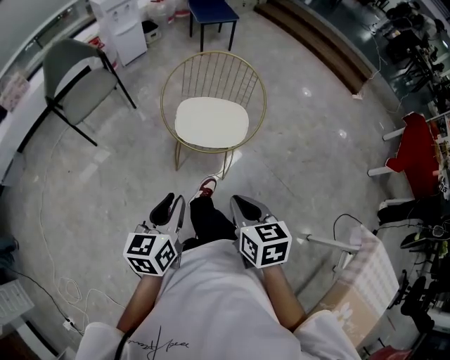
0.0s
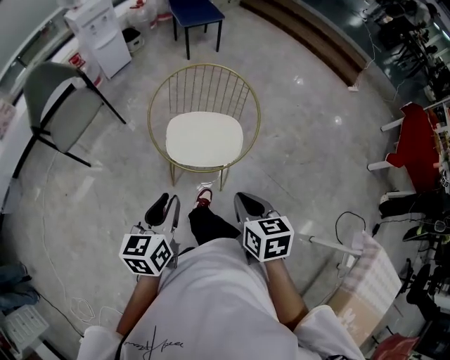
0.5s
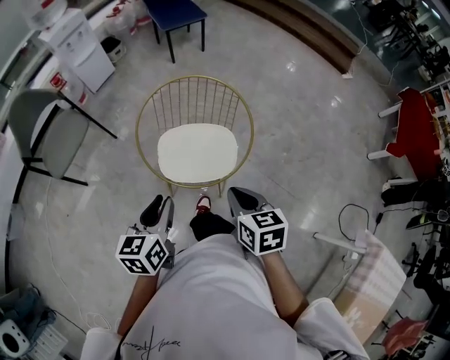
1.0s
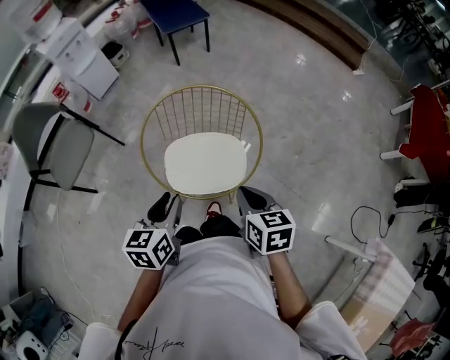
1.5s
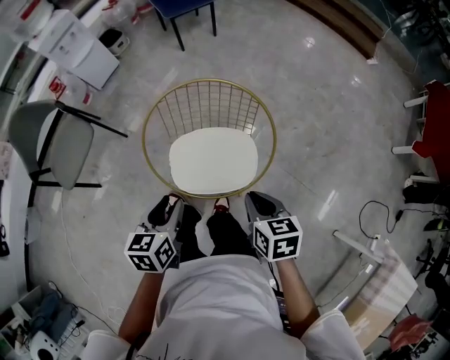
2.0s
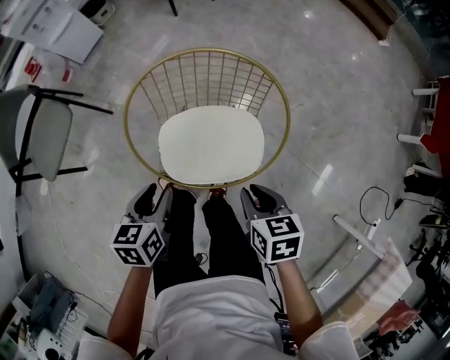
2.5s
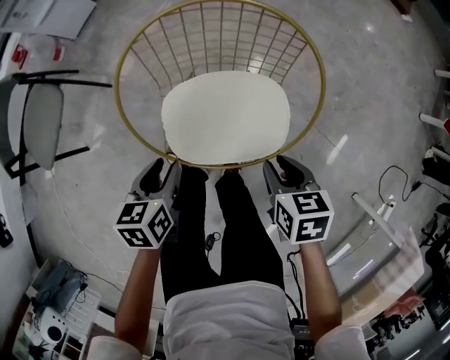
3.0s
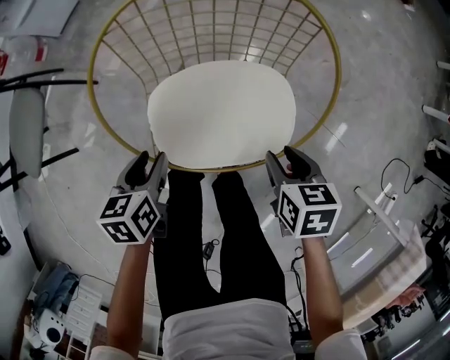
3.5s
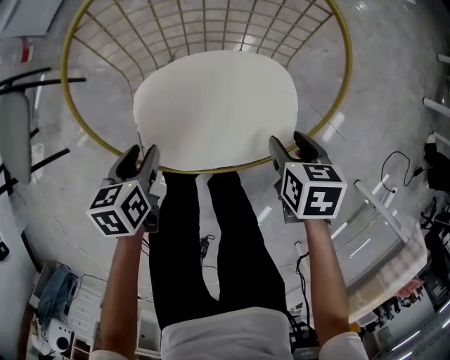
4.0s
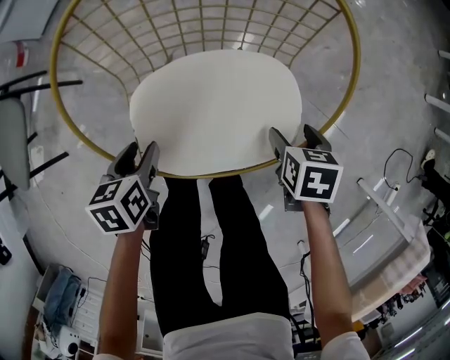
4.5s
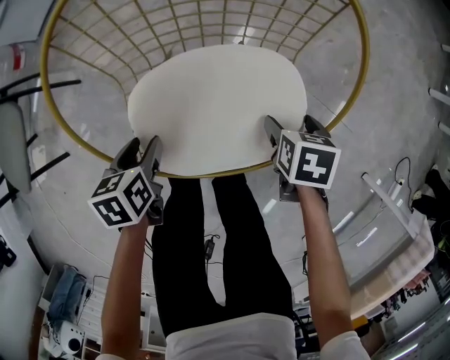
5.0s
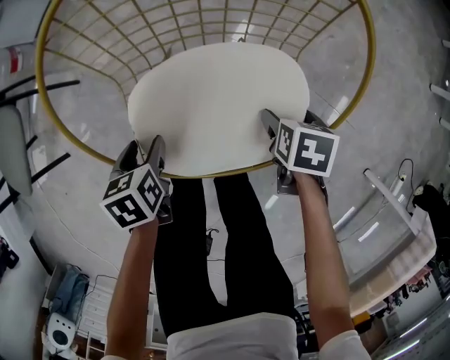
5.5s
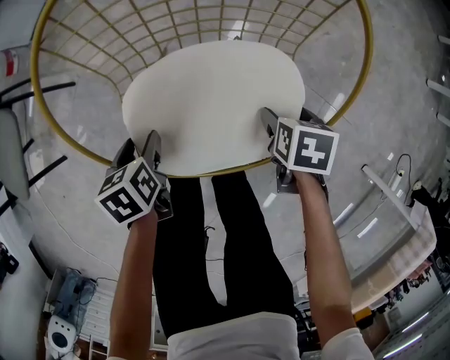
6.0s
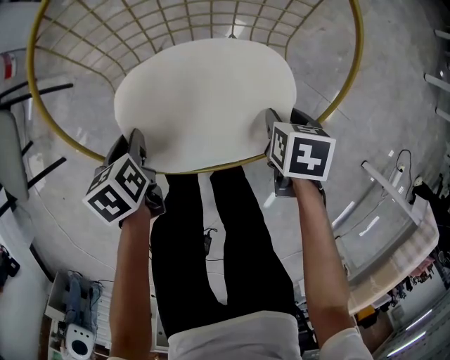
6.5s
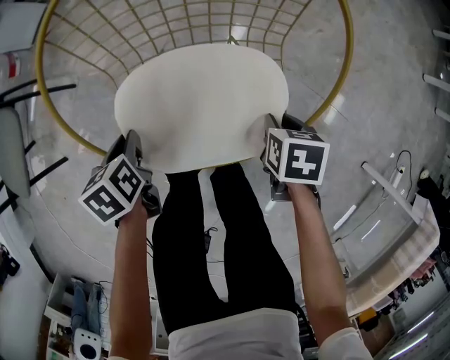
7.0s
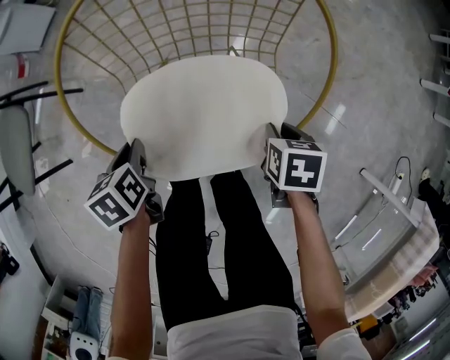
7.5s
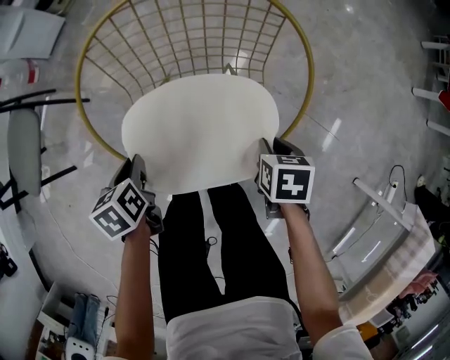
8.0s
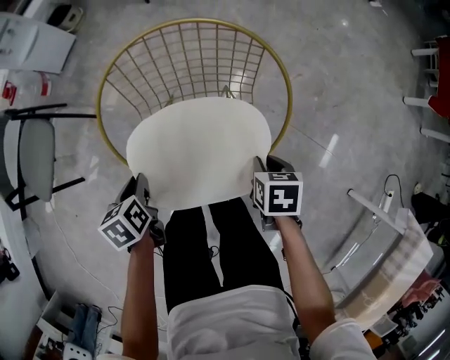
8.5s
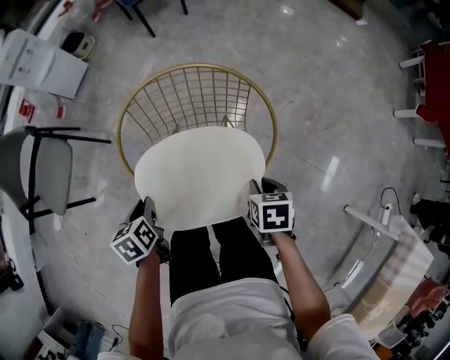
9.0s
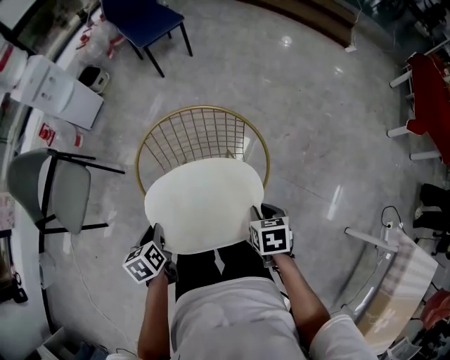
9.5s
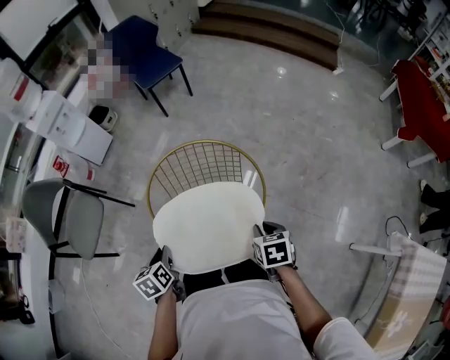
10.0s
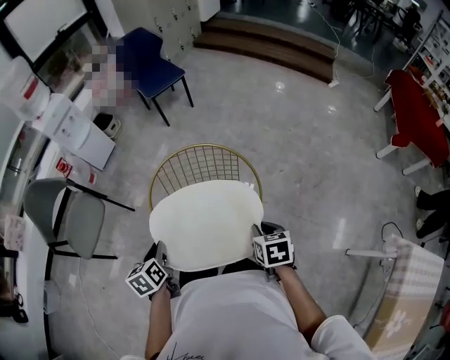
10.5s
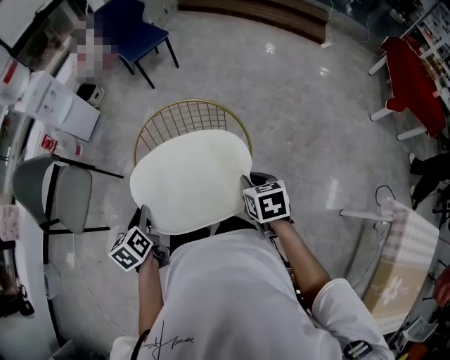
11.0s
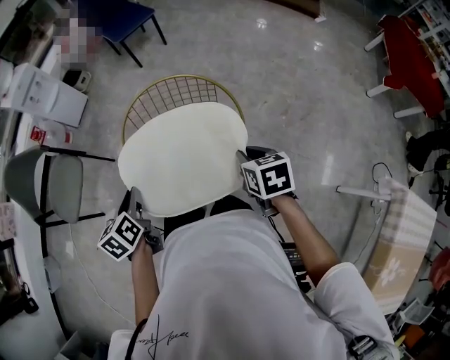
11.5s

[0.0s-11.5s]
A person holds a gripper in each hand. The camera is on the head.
0.0s to 2.0s: The grippers both shift forward by about 35 cm.
2.0s to 4.0s: The two grippers go approximately 30 cm downward. The right gripper turns by some 20 degrees, and opens up.
4.0s to 6.0s: Both grippers move downward, some 5 cm.
6.0s to 7.5s: The grippers both shift upward by some 5 cm. The left gripper closes its fingers. The right gripper closes up.
7.5s to 9.5s: The grippers both shift upward by about 25 cm.
9.5s to 11.5s: Both grippers move upward, some 10 cm.

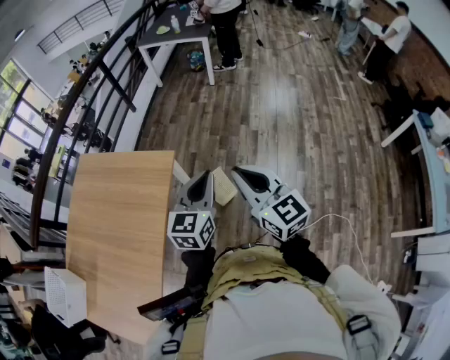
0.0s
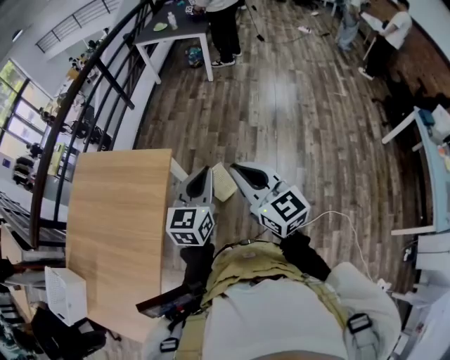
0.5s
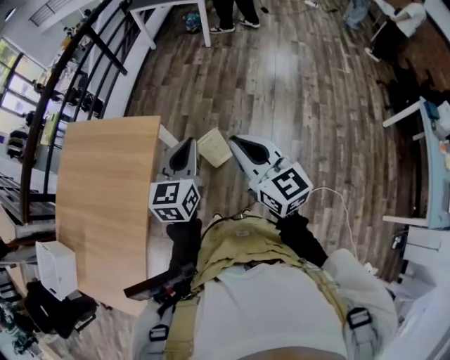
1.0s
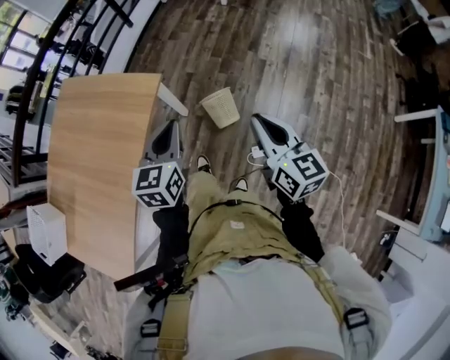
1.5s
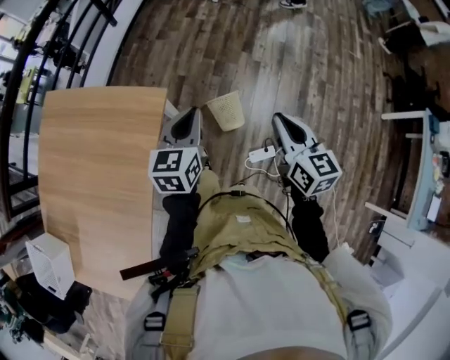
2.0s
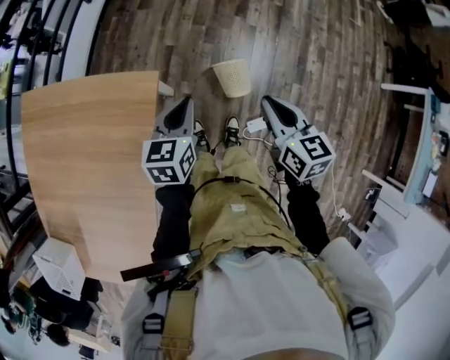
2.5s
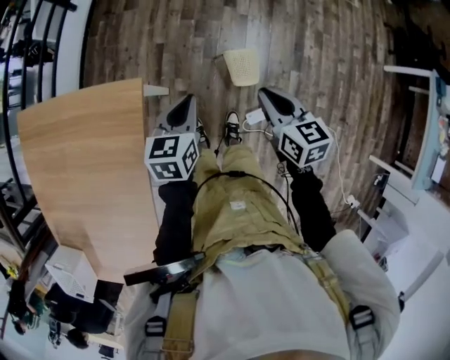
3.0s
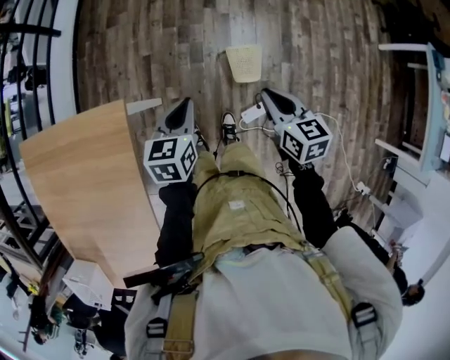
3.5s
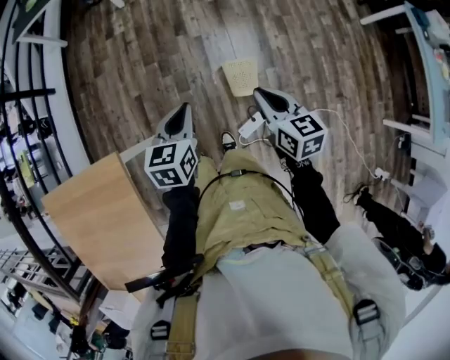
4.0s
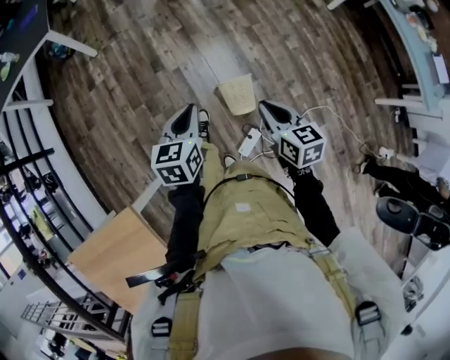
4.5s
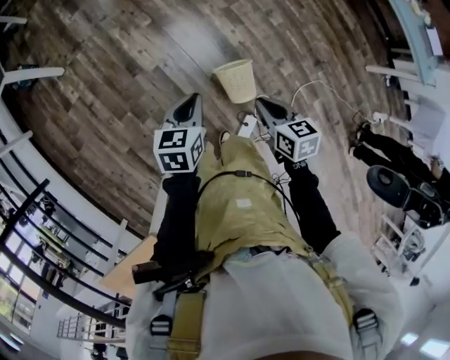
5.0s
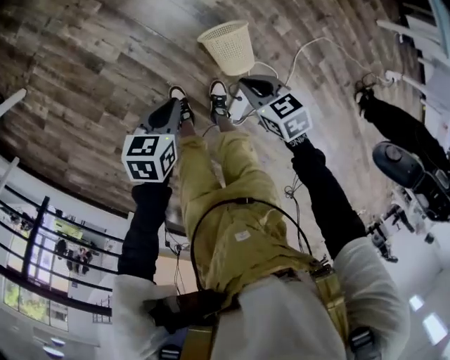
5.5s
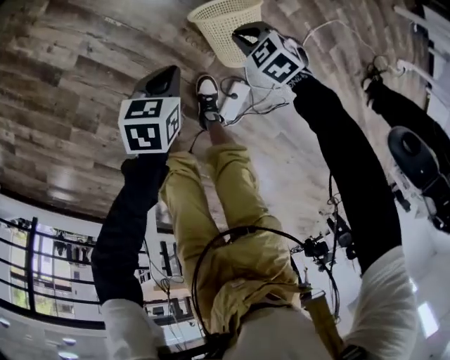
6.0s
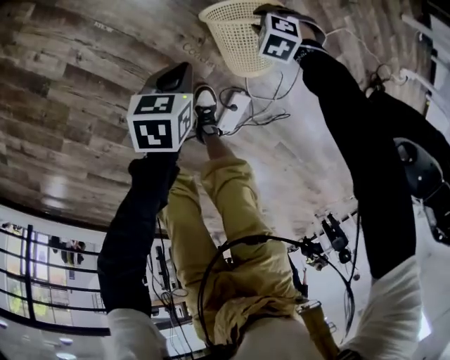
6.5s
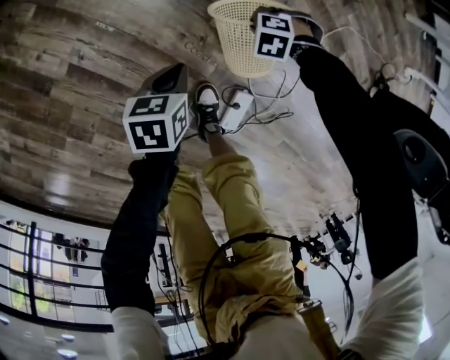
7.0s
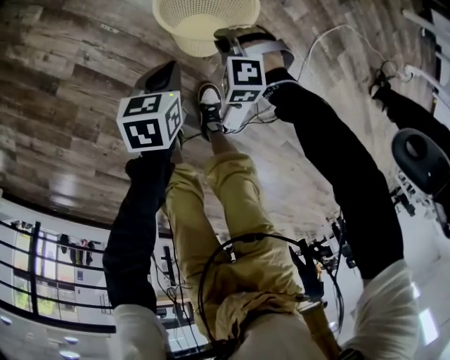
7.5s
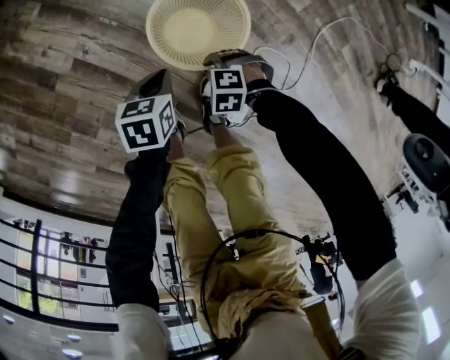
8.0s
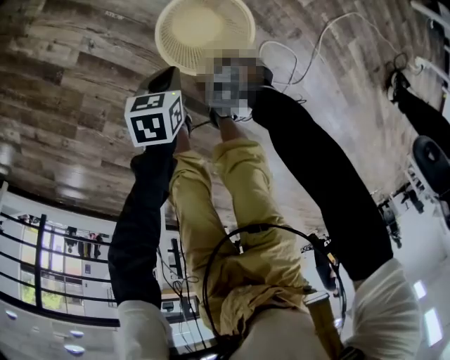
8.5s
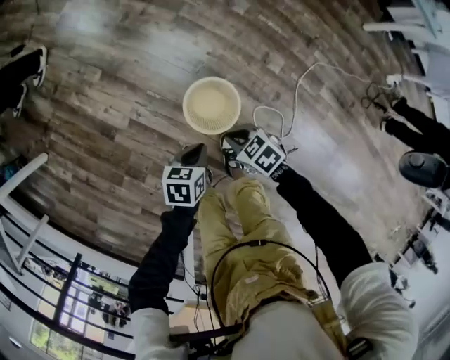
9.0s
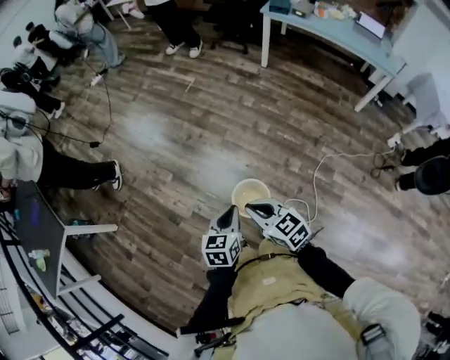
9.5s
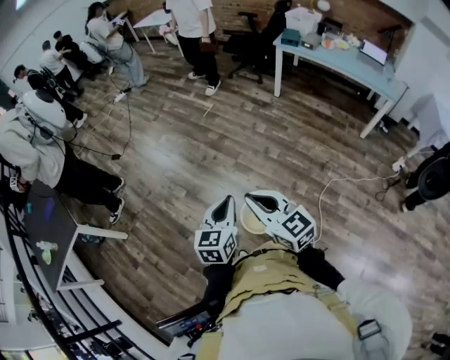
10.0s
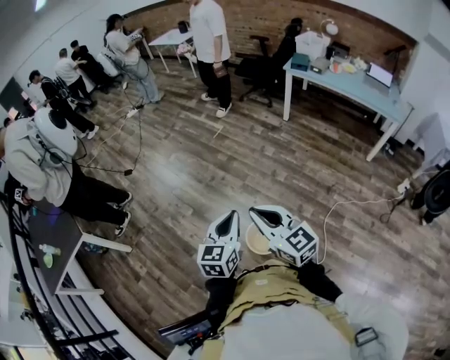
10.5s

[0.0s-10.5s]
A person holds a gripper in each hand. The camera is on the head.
0.0s to 2.0s: The two grippers go roughly 20 cm forward and downward. The right gripper changes its angle by some 20 degrees.
2.0s to 4.0s: The left gripper moves to the right and forward, approximately 30 cm, and swivels some 30 degrees, while the right gripper heads to the right, downward and forward, covering roughly 30 cm, and swivels some 20 degrees.
4.0s to 6.5s: The two grippers travel together, about 40 cm. The grippers both shift downward by approximately 70 cm. The left gripper rotates approximately 60 degrees. The right gripper angles its fingers downward, by approximately 60 degrees, and opens up.
6.5s to 8.5s: The left gripper moves about 10 cm, while the right gripper moves roughly 25 cm, and swivels about 20 degrees.
8.5s to 10.5s: Both grippers move upward, about 80 cm. The right gripper angles its fingers upward, by about 70 degrees; the left gripper points its fingers about 50 degrees further upward.

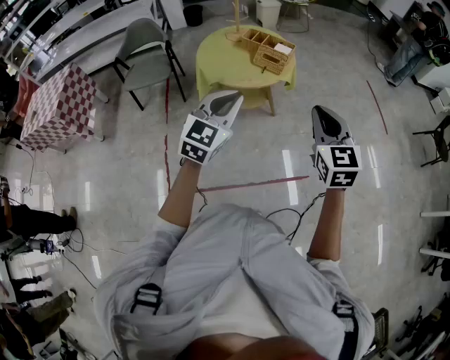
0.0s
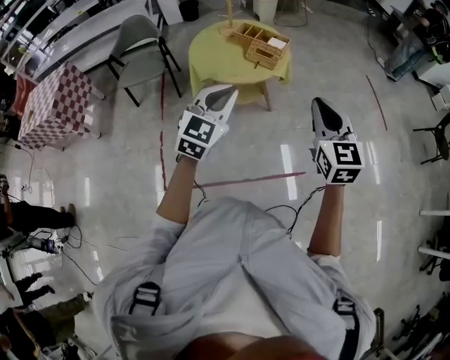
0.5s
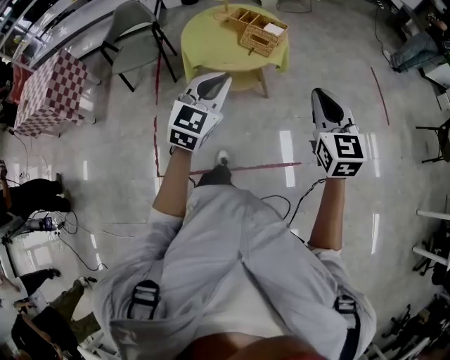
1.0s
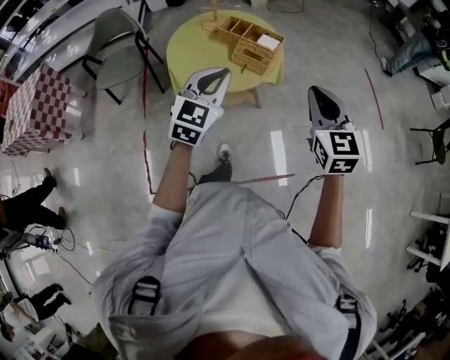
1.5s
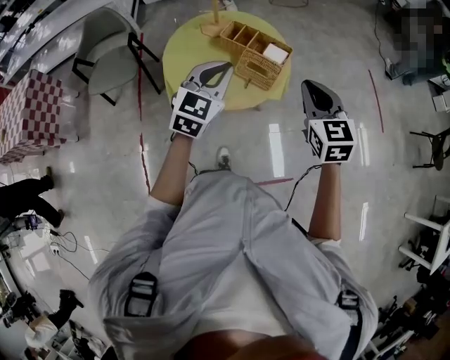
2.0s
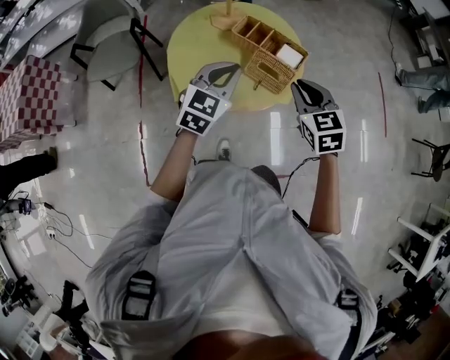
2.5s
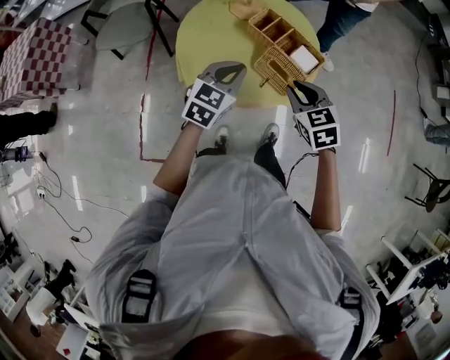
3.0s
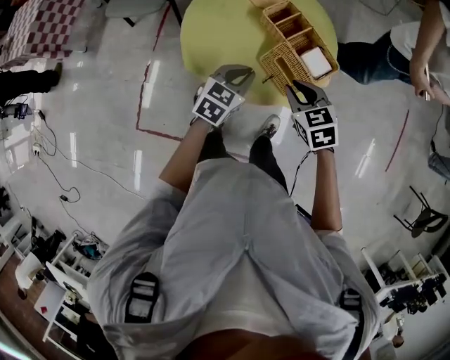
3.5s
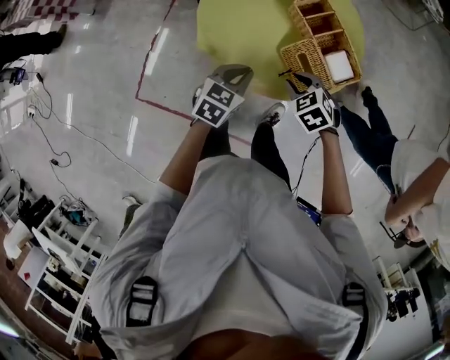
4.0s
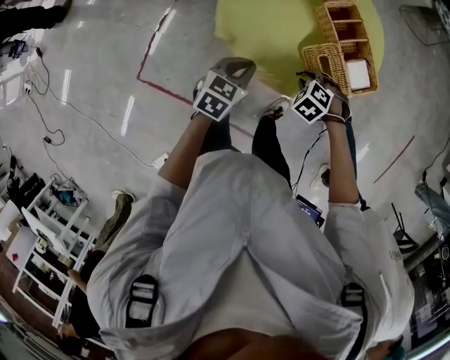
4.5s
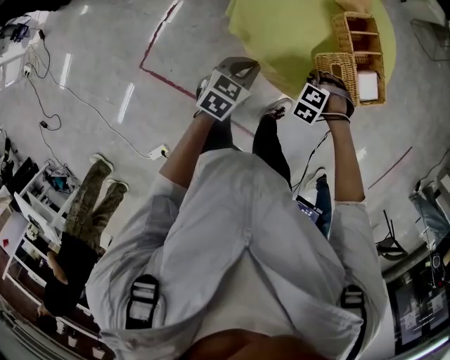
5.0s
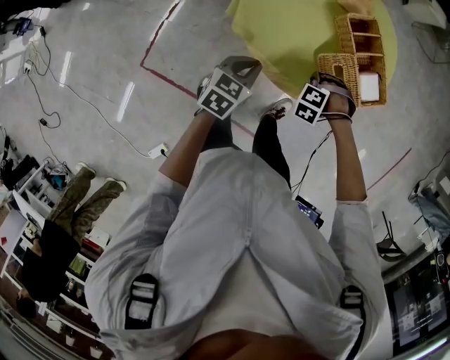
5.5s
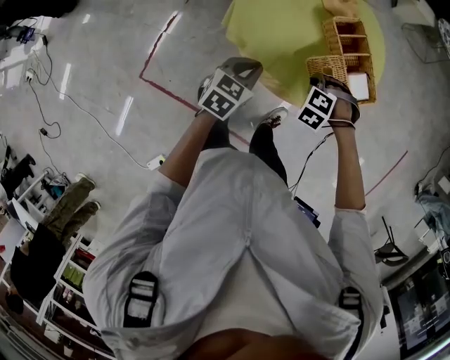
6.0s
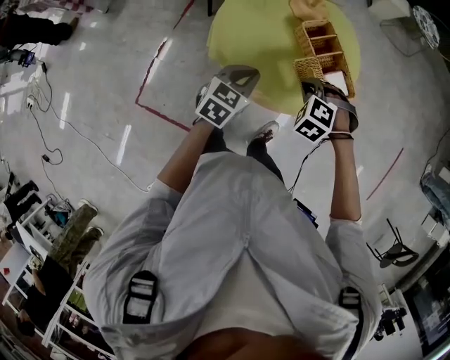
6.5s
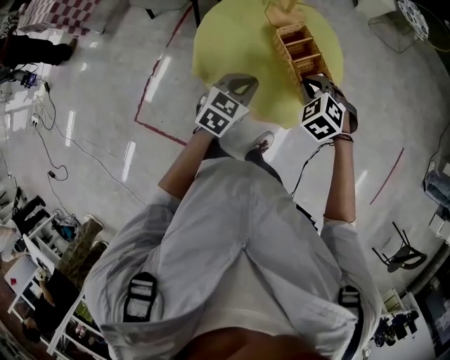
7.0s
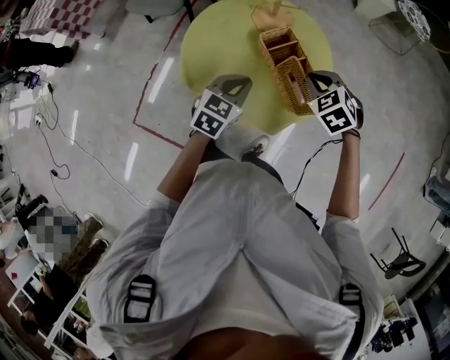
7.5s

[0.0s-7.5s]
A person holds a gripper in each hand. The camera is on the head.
0.0s to 2.0s: Both grippers move forward, approximately 40 cm.
2.0s to 4.0s: Both grippers move downward, roughly 30 cm. The right gripper angles its fingers downward, by some 40 degrees; the left gripper changes its angle by roughly 40 degrees.
4.0s to 5.5s: The right gripper goes about 10 cm downward, and twists some 50 degrees counterclockwise, seen from behind. Meanwhile the left gripper shifts by some 10 cm.
5.5s to 7.5s: The right gripper travels upward by approximately 20 cm, and changes its angle by roughly 50 degrees; the left gripper shifts by some 25 cm.
